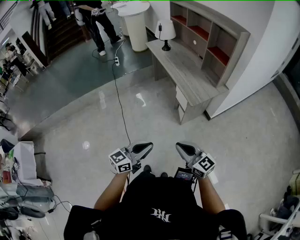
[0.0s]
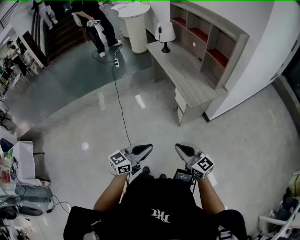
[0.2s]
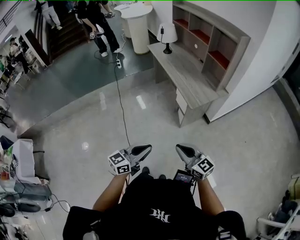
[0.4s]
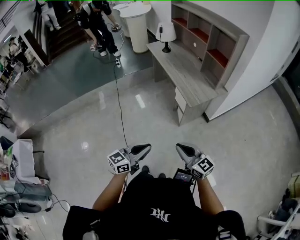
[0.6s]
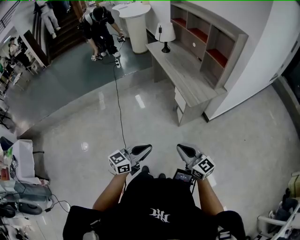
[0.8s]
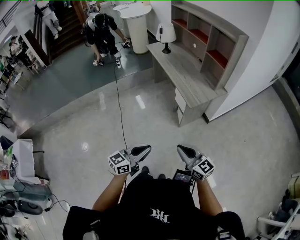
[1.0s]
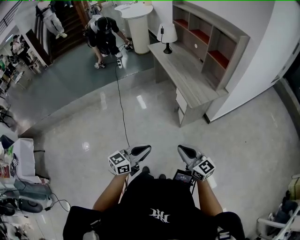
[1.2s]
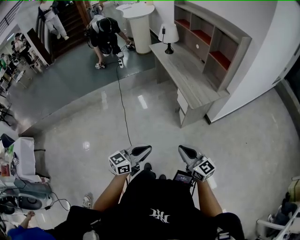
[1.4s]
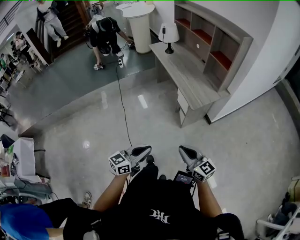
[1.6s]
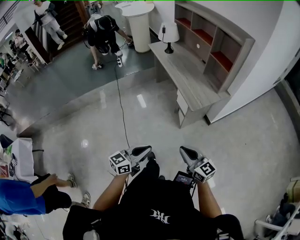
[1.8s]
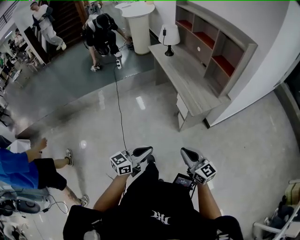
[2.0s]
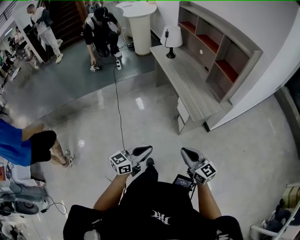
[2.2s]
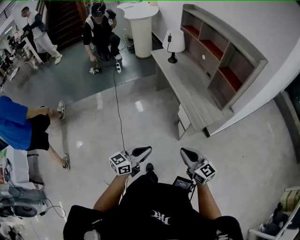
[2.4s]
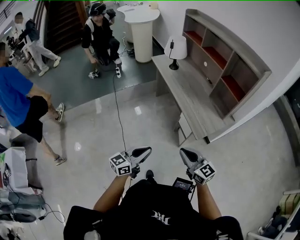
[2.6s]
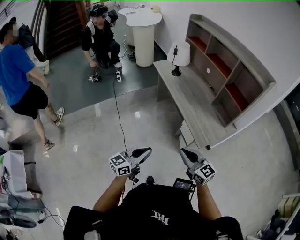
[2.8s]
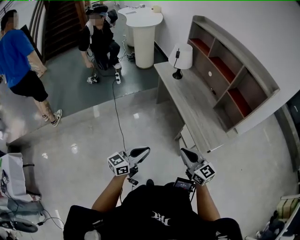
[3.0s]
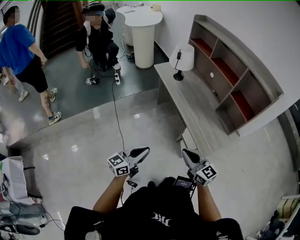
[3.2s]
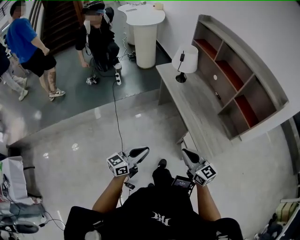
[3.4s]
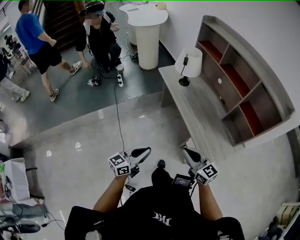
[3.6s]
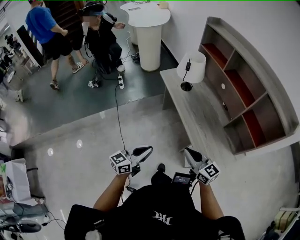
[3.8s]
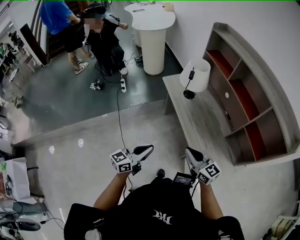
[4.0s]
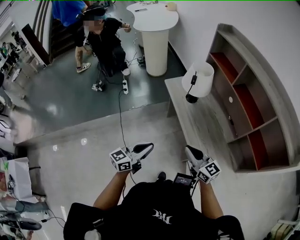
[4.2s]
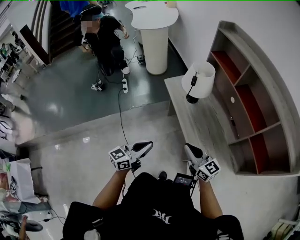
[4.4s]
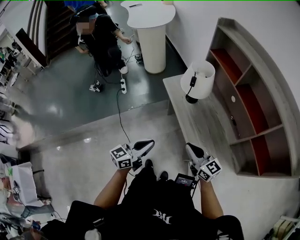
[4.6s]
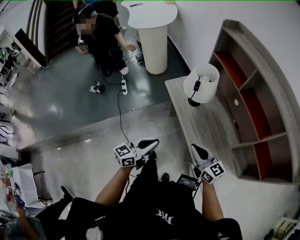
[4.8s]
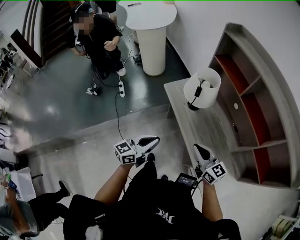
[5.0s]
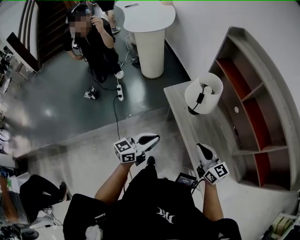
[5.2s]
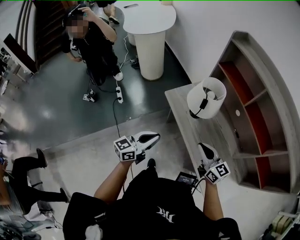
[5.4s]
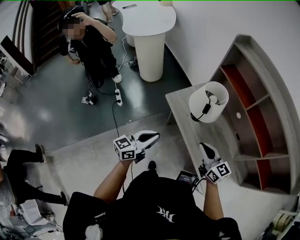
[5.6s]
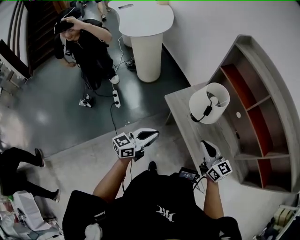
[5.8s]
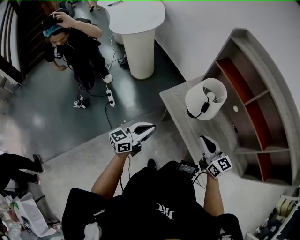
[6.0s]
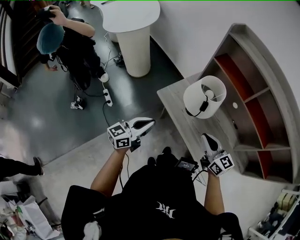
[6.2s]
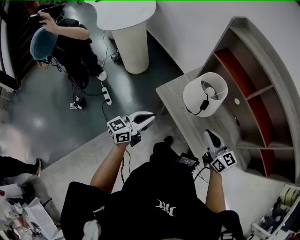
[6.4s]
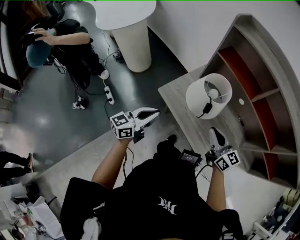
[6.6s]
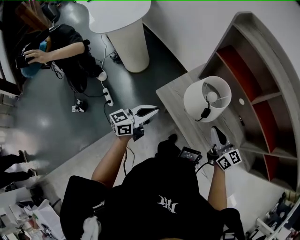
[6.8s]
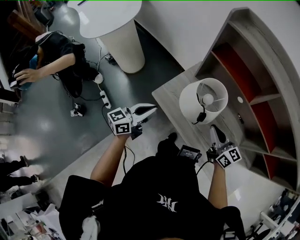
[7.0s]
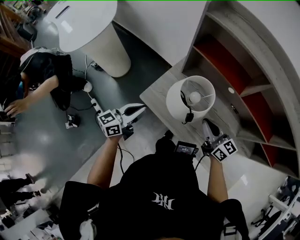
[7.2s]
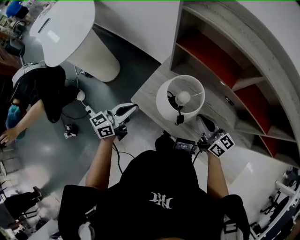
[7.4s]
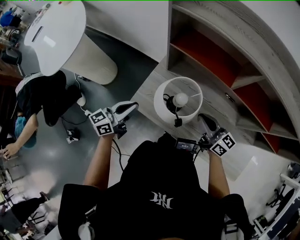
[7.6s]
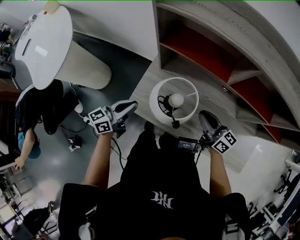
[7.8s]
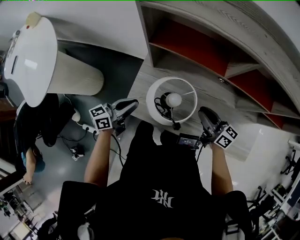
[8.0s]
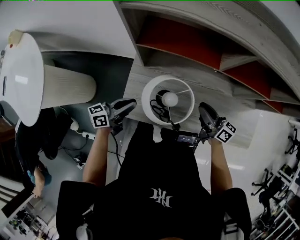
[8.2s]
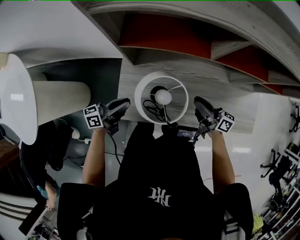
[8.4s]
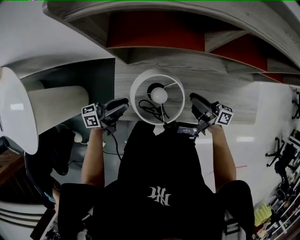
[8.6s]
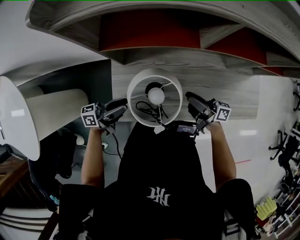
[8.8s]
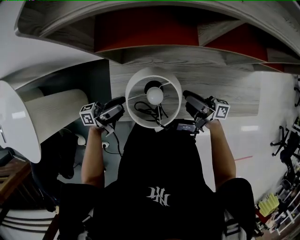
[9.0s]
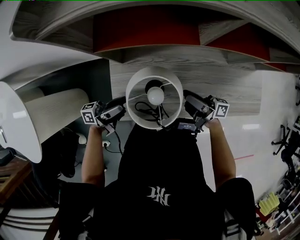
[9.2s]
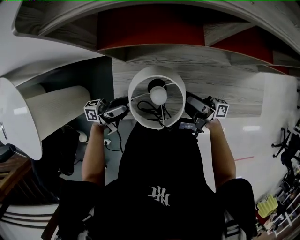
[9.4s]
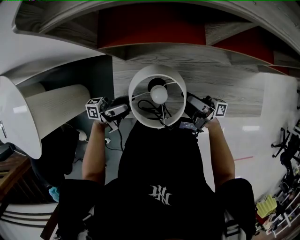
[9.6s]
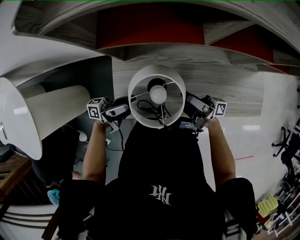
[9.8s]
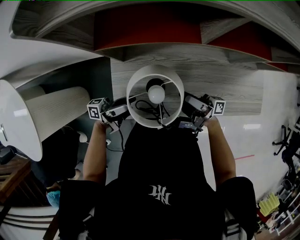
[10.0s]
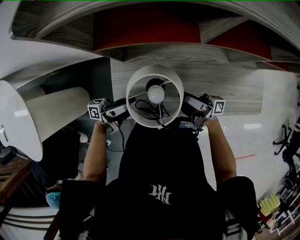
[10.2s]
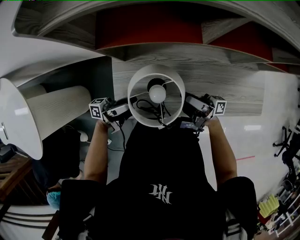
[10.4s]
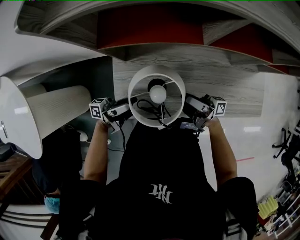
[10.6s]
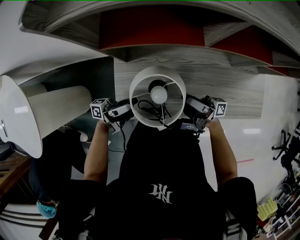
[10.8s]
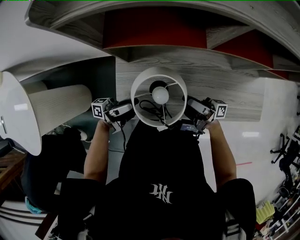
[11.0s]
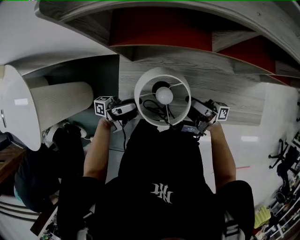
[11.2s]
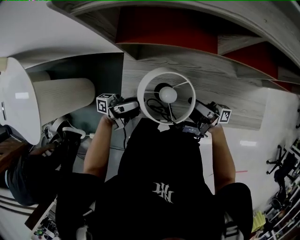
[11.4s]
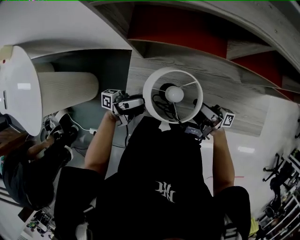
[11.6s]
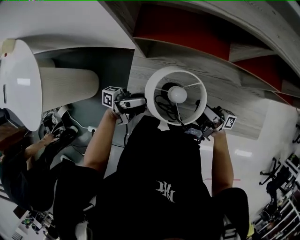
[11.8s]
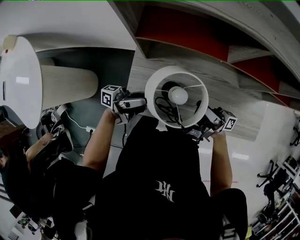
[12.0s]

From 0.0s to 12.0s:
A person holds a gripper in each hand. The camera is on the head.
From 0.0s to 1.6s: The grippers make only small movements.
From 1.6s to 3.0s: Both grippers move forward and to the left, roughly 35 cm.
From 3.0s to 4.4s: Both grippers travel together forward, roughly 35 cm.
From 4.4s to 6.0s: The left gripper shifts some 30 cm forward and to the left. Meanwhile the right gripper is displaced forward by about 20 cm, and changes its angle by about 20 degrees.
From 6.0s to 7.6s: The left gripper moves forward, about 25 cm, and swivels approximately 20 degrees; the right gripper moves forward and to the right, approximately 20 cm, and changes its angle by some 30 degrees.
From 7.6s to 9.0s: The right gripper shifts some 10 cm downward, rolls clockwise, seen from behind, by about 40 degrees, and opens. Meanwhile the left gripper ends up roughly 15 cm from where it was, swivels some 60 degrees, and opens.
From 9.0s to 12.0s: The grippers stay close to where they were, moving slightly.

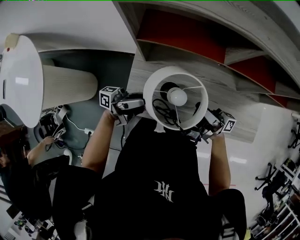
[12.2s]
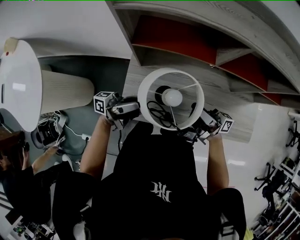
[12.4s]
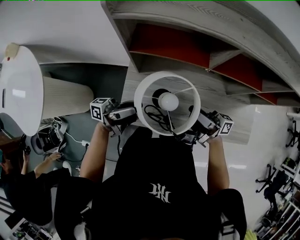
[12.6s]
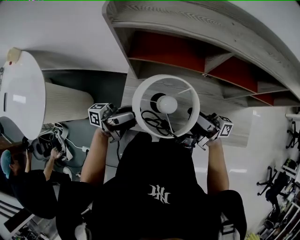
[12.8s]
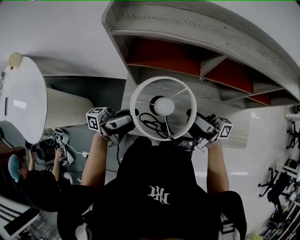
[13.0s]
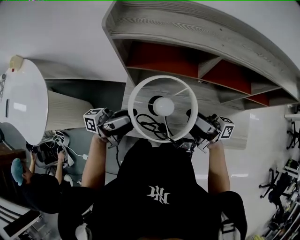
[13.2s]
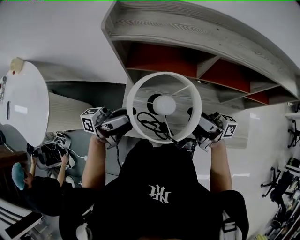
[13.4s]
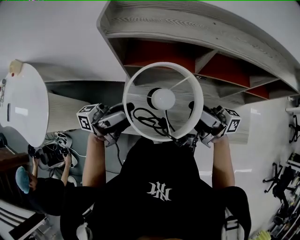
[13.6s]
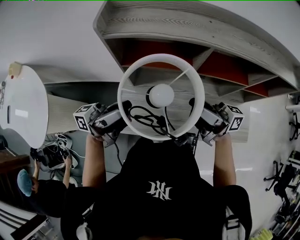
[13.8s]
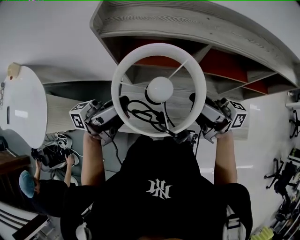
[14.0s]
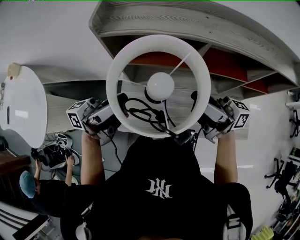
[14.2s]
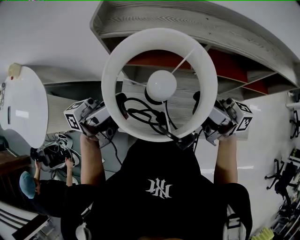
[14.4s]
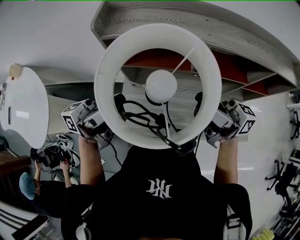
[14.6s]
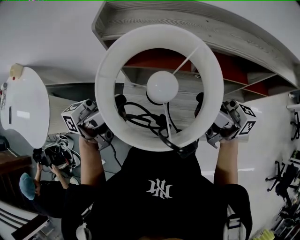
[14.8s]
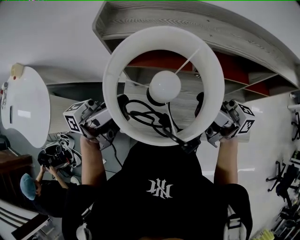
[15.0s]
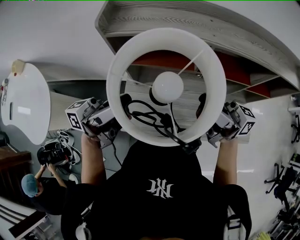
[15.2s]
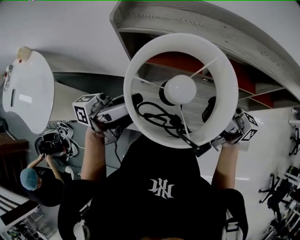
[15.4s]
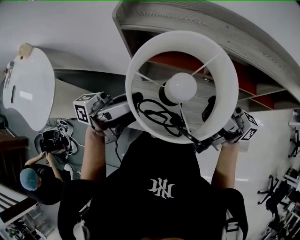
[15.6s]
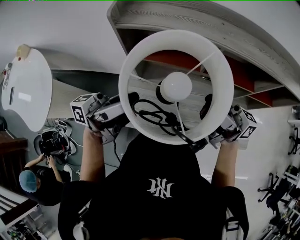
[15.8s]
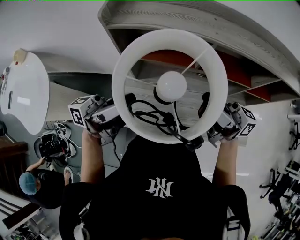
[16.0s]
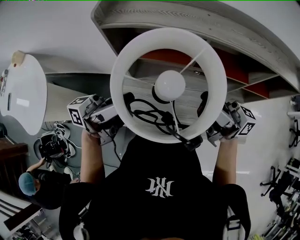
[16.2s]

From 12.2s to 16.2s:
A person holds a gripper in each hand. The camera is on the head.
From 12.2s to 13.6s: Both grippers travel together upward, approximately 15 cm.
From 13.6s to 14.8s: Both grippers move upward, about 10 cm.
From 14.8s to 16.2s: There are only small adjustments of the grippers.

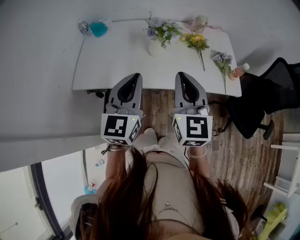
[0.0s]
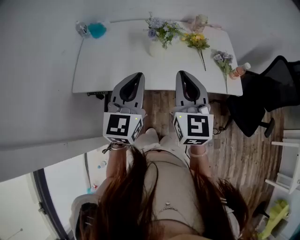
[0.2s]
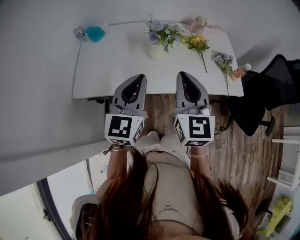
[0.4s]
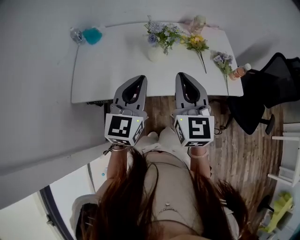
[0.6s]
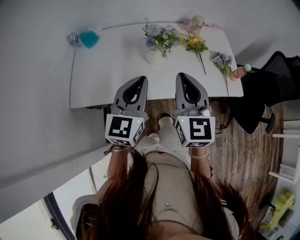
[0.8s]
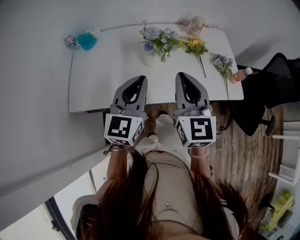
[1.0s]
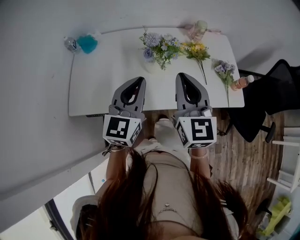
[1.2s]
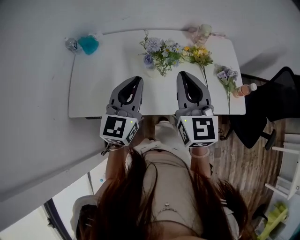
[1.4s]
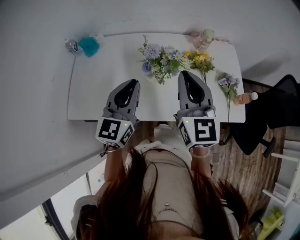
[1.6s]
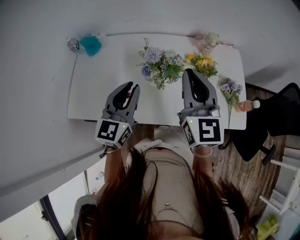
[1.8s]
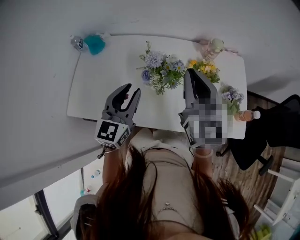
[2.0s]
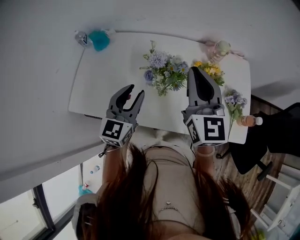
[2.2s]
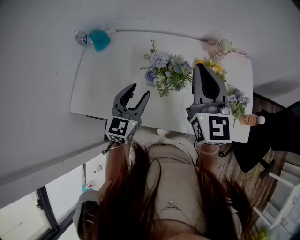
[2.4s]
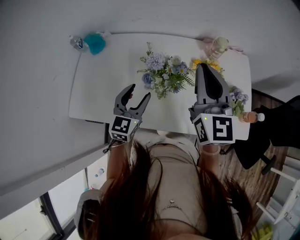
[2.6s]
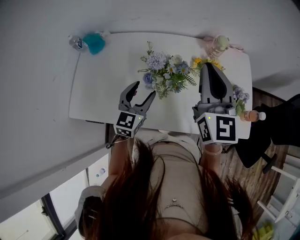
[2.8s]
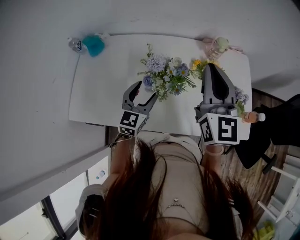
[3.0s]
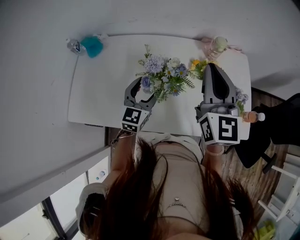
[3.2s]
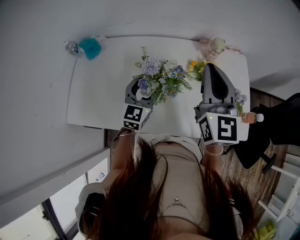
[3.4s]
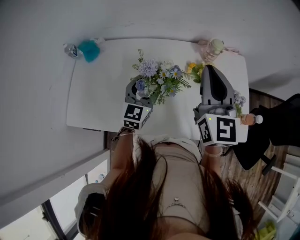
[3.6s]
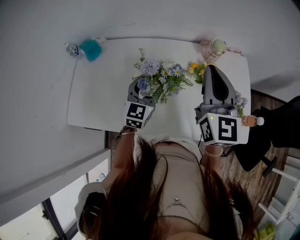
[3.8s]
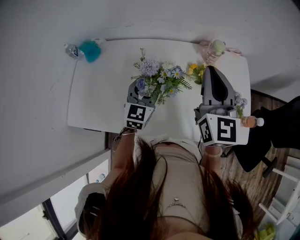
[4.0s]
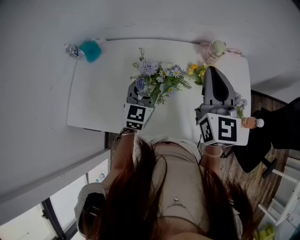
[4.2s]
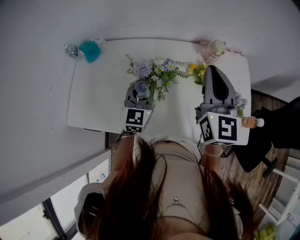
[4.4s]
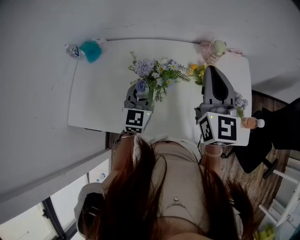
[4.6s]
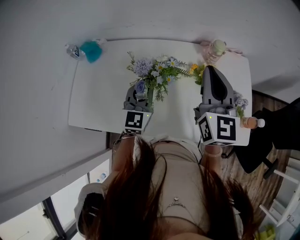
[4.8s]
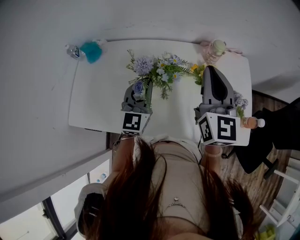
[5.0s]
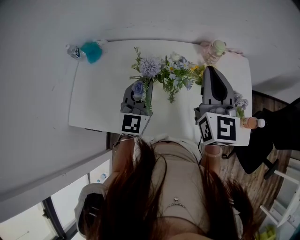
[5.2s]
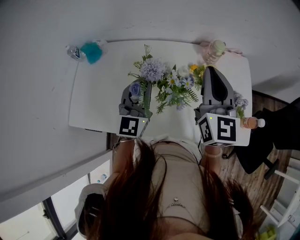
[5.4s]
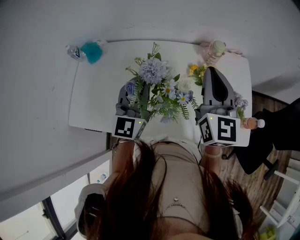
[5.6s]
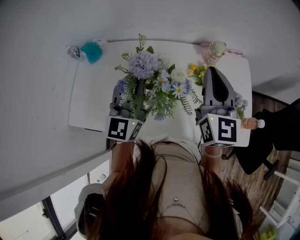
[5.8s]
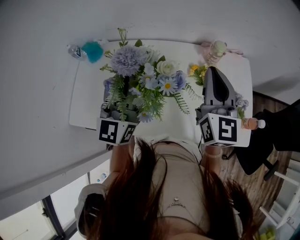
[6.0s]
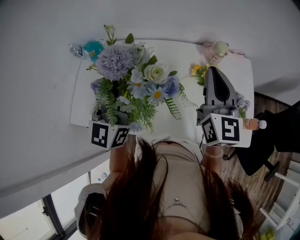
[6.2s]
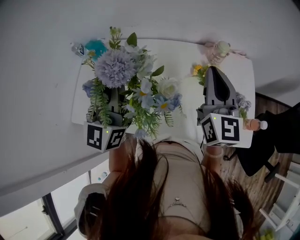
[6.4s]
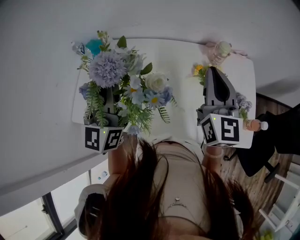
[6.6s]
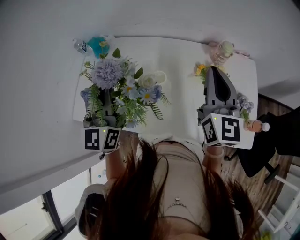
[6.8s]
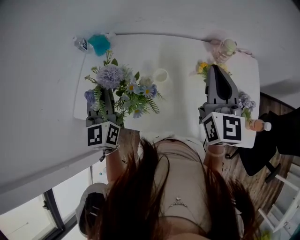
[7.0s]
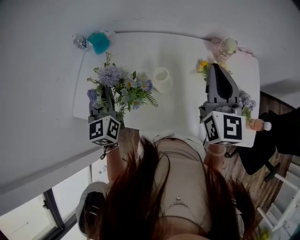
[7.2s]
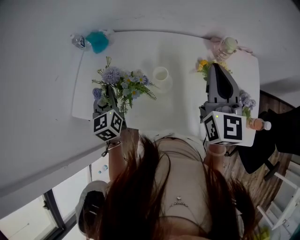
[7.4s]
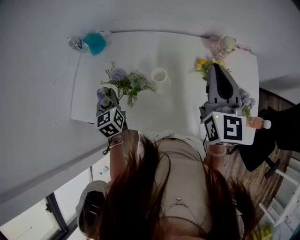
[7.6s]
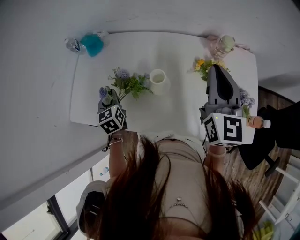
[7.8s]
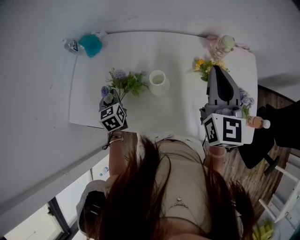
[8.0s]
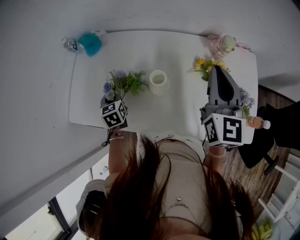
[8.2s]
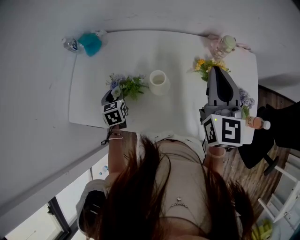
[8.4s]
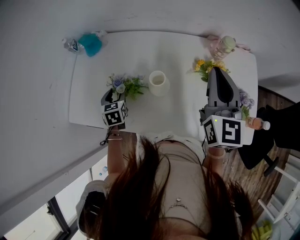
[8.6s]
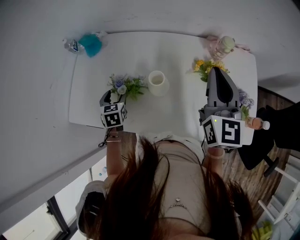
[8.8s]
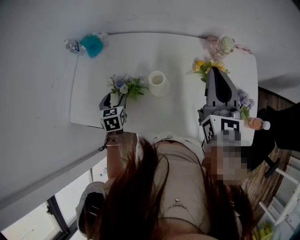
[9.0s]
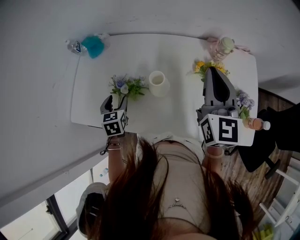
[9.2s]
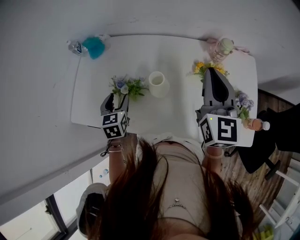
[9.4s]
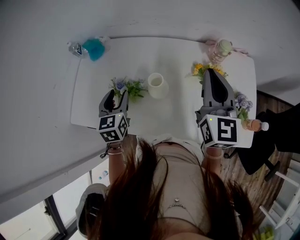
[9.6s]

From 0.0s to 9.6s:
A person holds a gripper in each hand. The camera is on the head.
From 0.0s to 1.6s: The two grippers go roughly 20 cm forward.
From 1.6s to 3.2s: The right gripper travels forward and to the right by some 10 cm; the left gripper is displaced downward and forward by roughly 15 cm, and opens its fingers.
From 3.2s to 4.8s: The left gripper closes.
From 4.8s to 6.4s: The left gripper shifts approximately 20 cm upward, and changes its angle by about 30 degrees.
From 6.4s to 8.0s: The left gripper heads downward and to the left, covering some 35 cm, and tilts its fingers some 60 degrees downward.
From 8.0s to 9.6s: The left gripper shifts roughly 10 cm upward and to the right, and opens its fingers.
